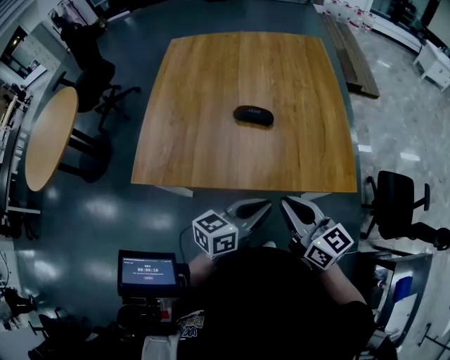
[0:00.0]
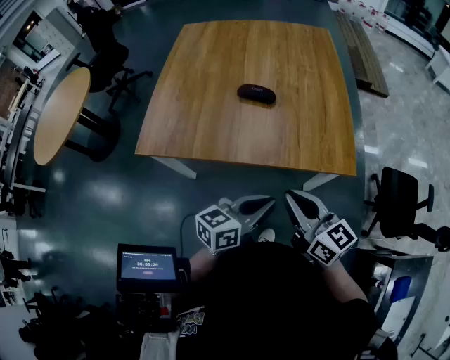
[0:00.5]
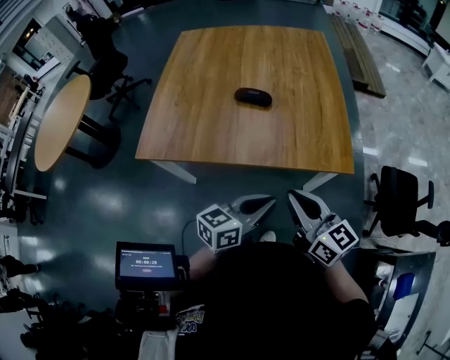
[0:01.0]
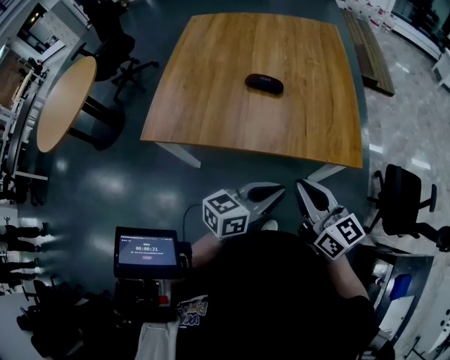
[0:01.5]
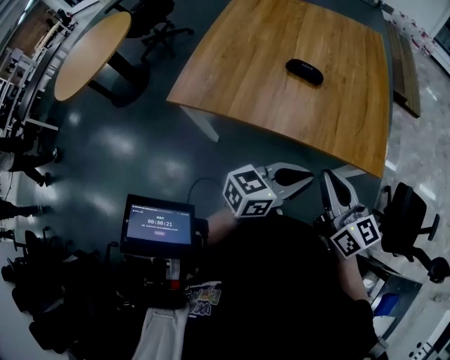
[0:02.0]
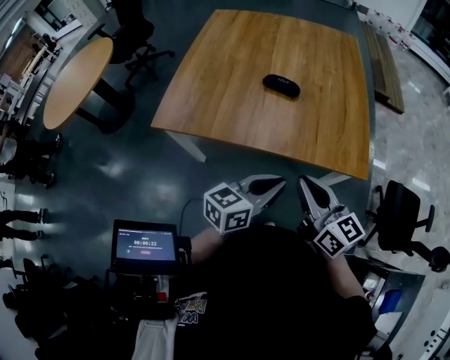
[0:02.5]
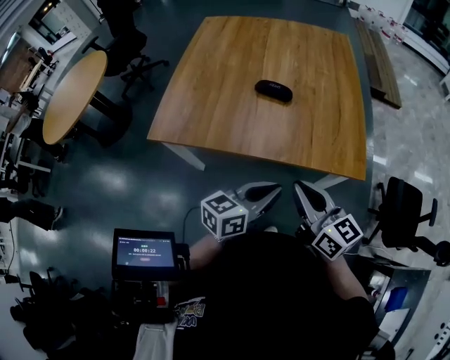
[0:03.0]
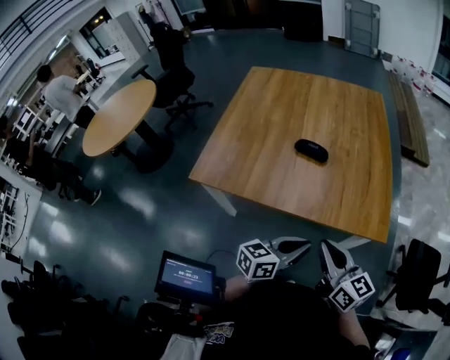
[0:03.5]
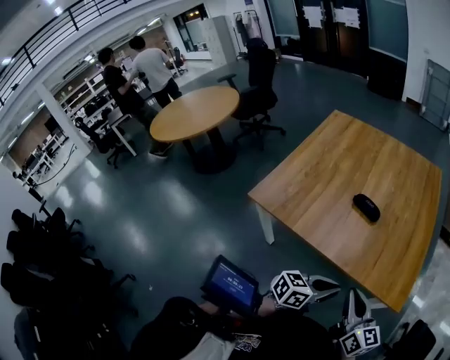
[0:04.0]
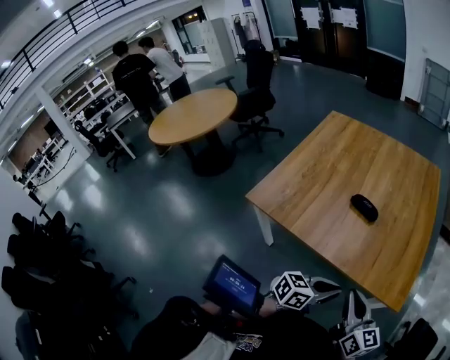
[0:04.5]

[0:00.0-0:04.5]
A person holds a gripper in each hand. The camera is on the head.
0:00.0 to 0:02.0: The two grippers go some 5 cm backward.
0:02.0 to 0:04.5: The left gripper is displaced downward by roughly 5 cm.

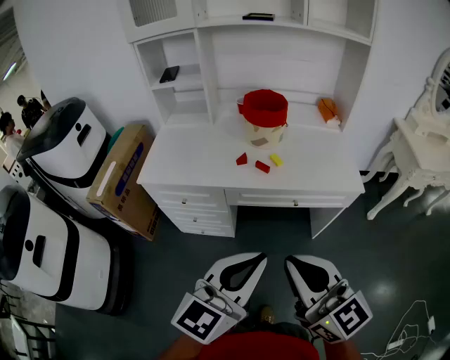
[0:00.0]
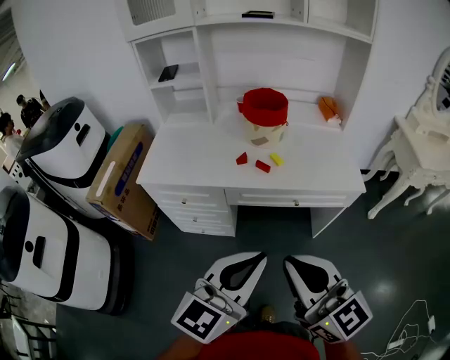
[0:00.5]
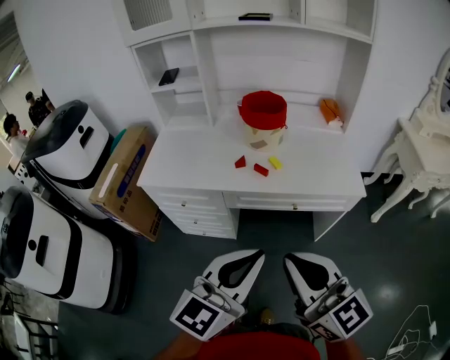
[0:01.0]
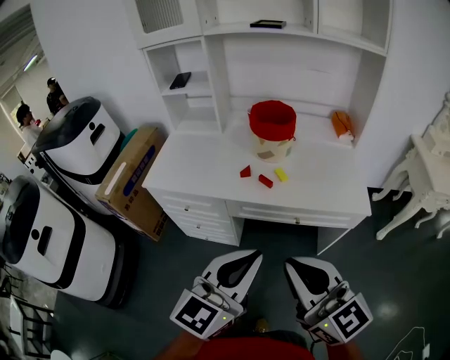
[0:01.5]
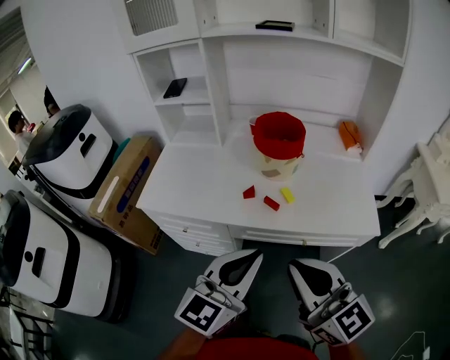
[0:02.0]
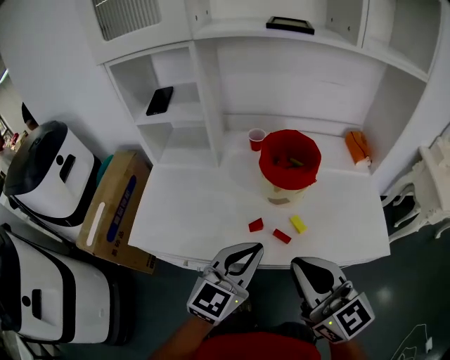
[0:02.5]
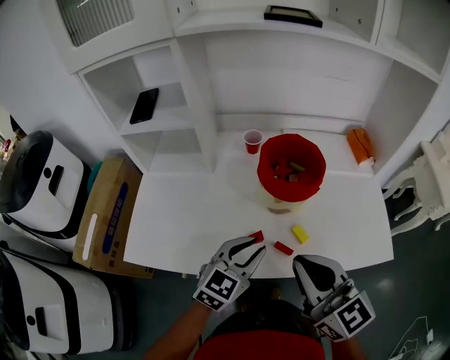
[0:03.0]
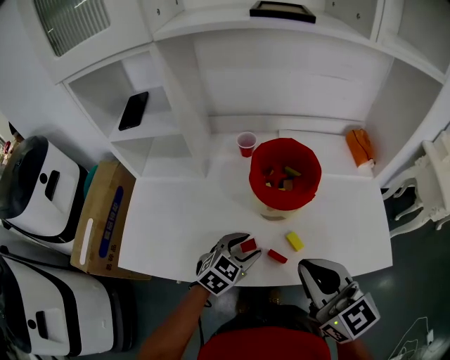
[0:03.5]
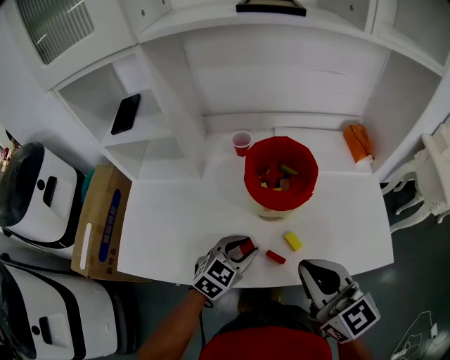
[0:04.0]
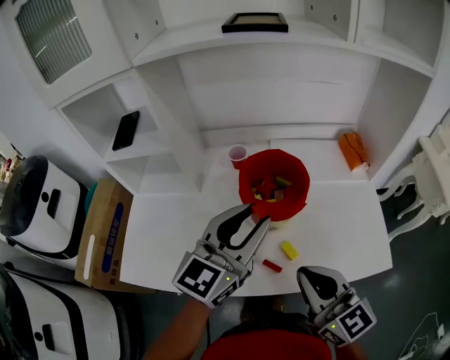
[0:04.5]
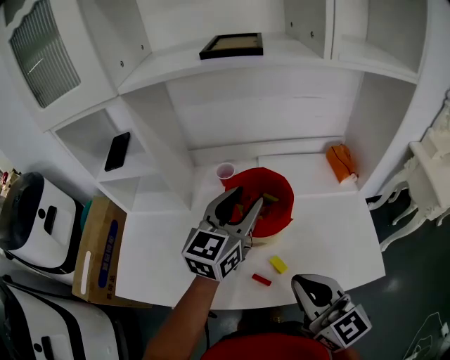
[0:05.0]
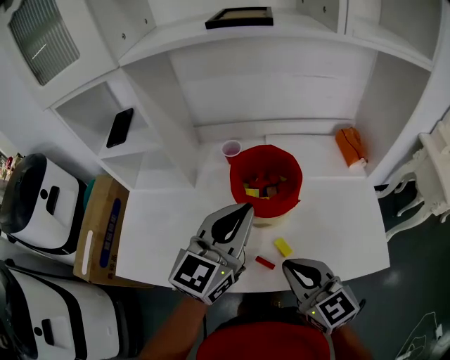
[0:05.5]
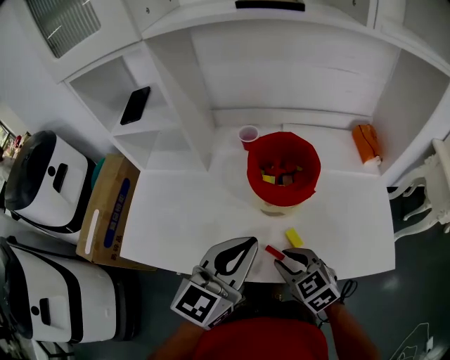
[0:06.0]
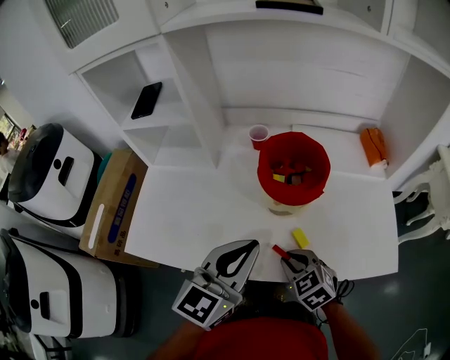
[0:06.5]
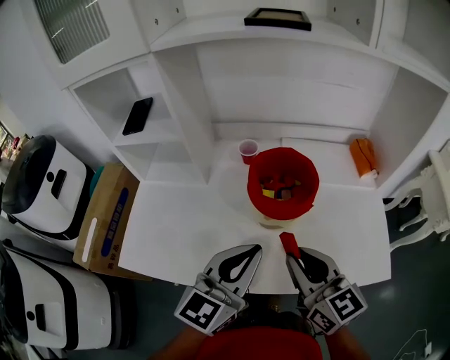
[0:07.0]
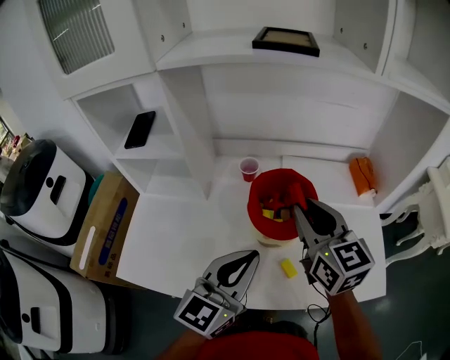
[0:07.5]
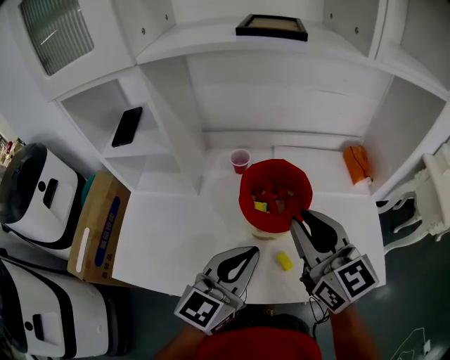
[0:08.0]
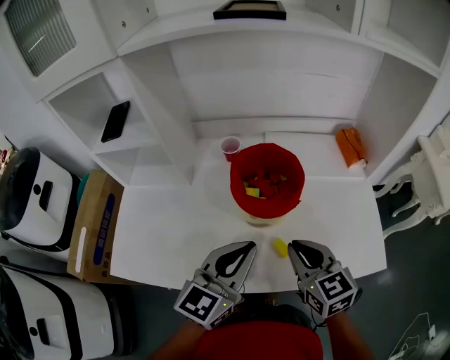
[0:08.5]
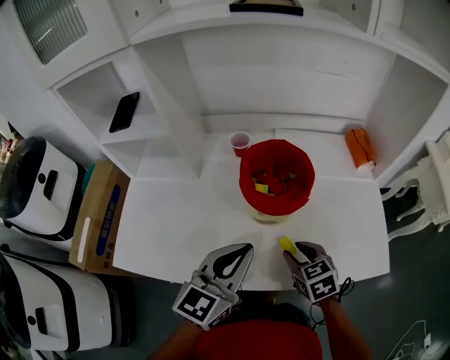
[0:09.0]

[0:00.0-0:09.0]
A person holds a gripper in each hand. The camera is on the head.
0:00.0 to 0:02.0: Both grippers move forward, approximately 15 cm.
0:02.0 to 0:04.5: Both grippers move forward, roughly 25 cm. The left gripper opens.
0:04.5 to 0:07.0: The left gripper travels backward by some 5 cm, and closes its fingers, while the right gripper reaches about 20 cm downward, then returns.
0:07.0 to 0:09.0: The right gripper travels downward by approximately 15 cm, points its fingers some 40 degrees further downward, and opens up.

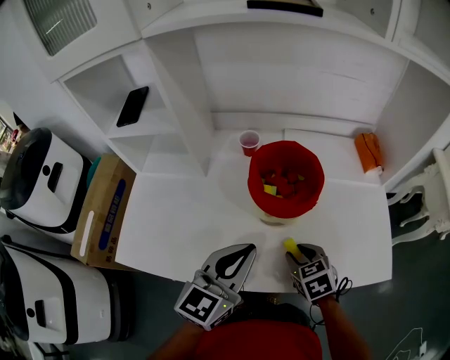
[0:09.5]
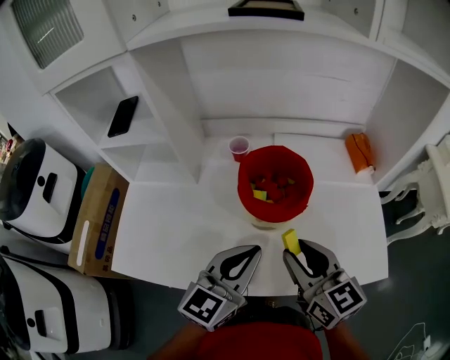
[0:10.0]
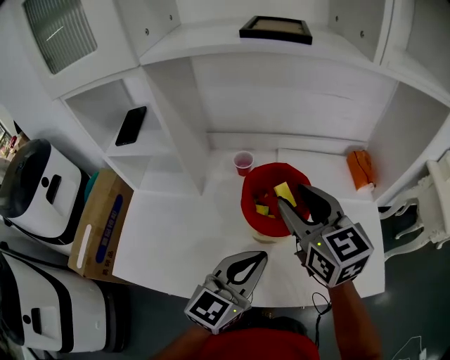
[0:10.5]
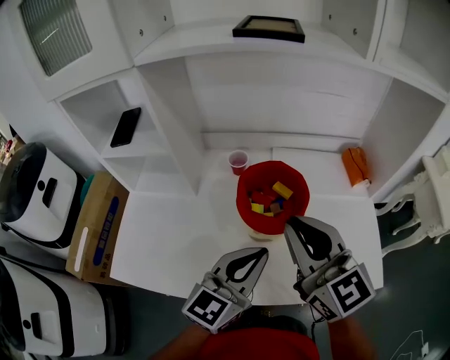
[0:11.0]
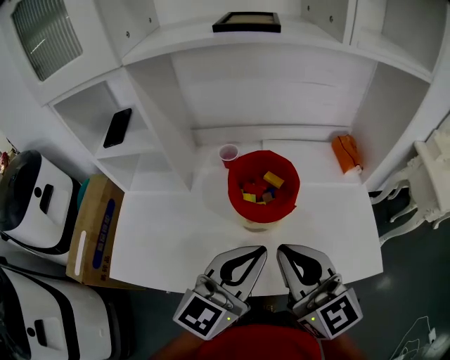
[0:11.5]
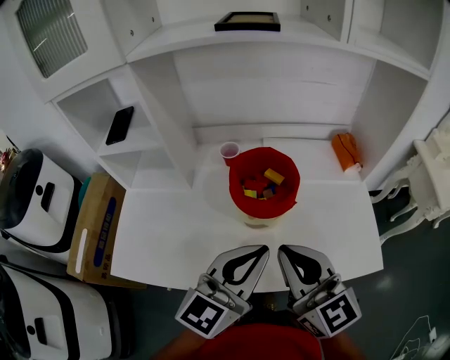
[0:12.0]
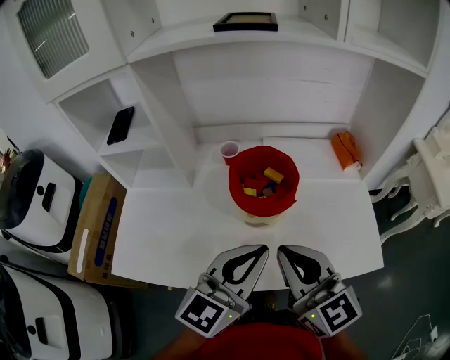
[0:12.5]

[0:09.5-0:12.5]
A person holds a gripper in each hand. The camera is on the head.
0:09.5 to 0:11.0: The right gripper shifts roughly 30 cm upward, tips its fingers upward by some 50 degrees, and closes up; the left gripper moves roughly 5 cm.
0:11.0 to 0:12.5: The right gripper goes some 10 cm backward; the left gripper shifts by roughly 5 cm.

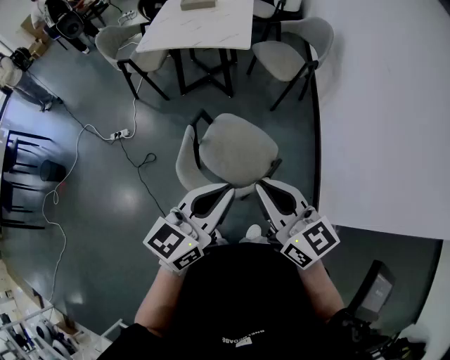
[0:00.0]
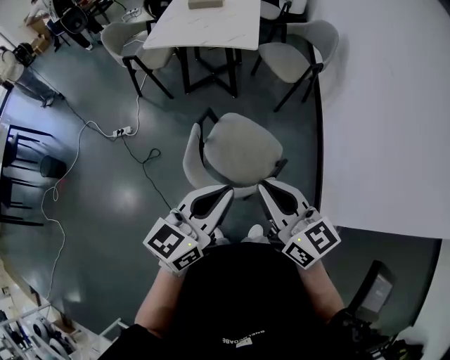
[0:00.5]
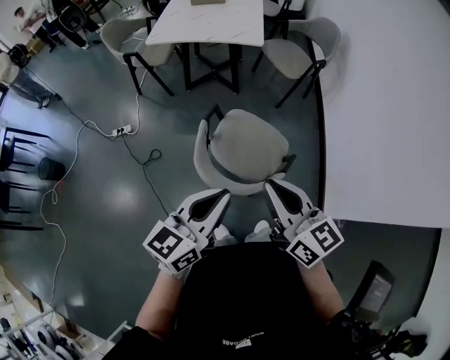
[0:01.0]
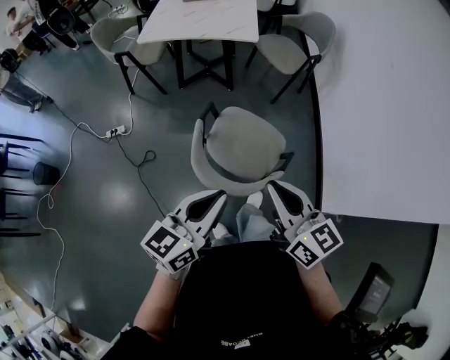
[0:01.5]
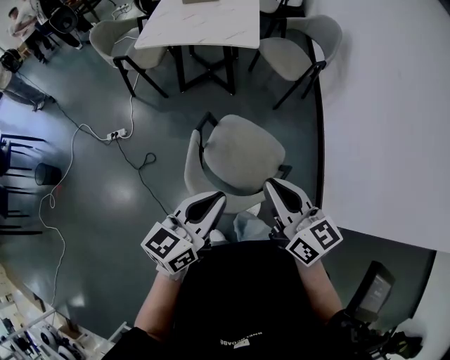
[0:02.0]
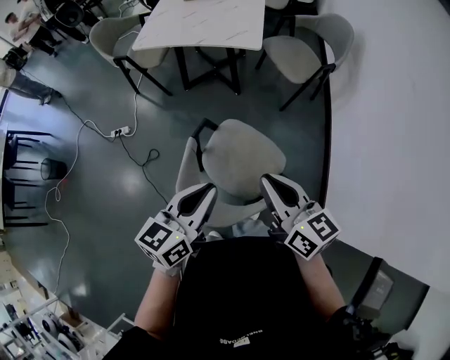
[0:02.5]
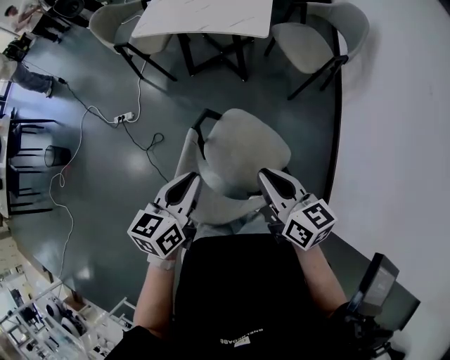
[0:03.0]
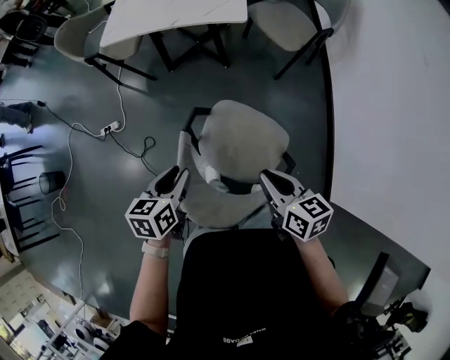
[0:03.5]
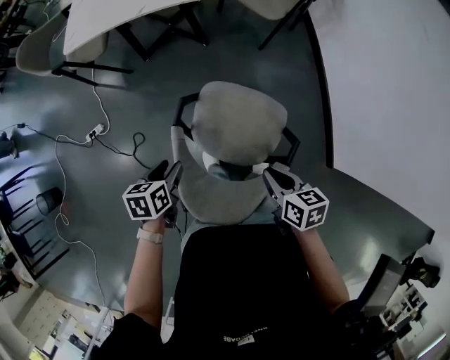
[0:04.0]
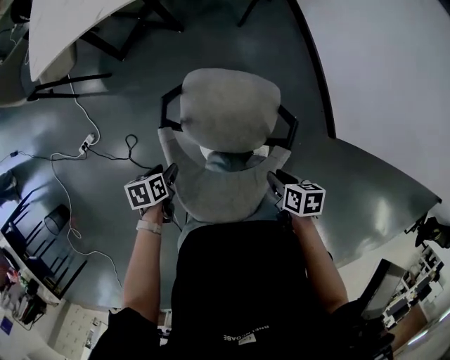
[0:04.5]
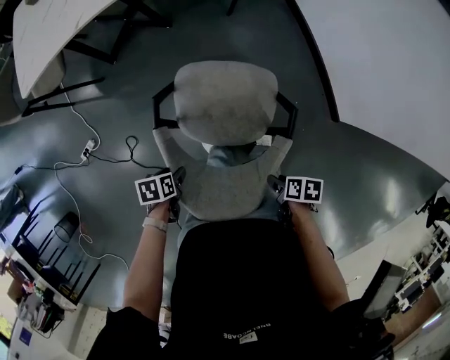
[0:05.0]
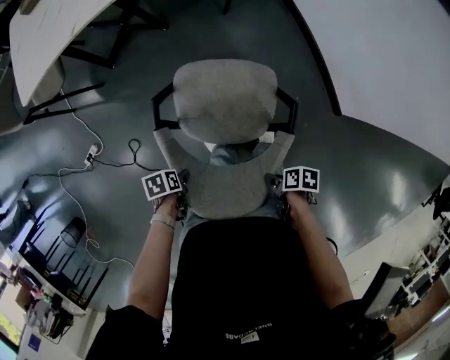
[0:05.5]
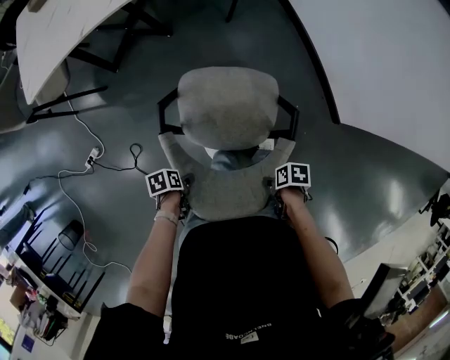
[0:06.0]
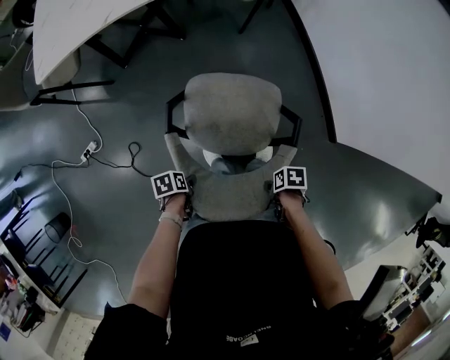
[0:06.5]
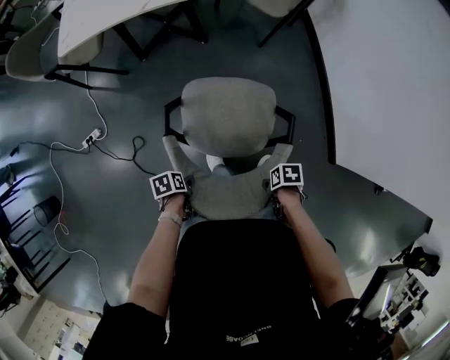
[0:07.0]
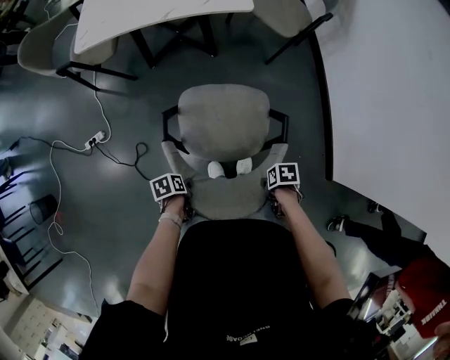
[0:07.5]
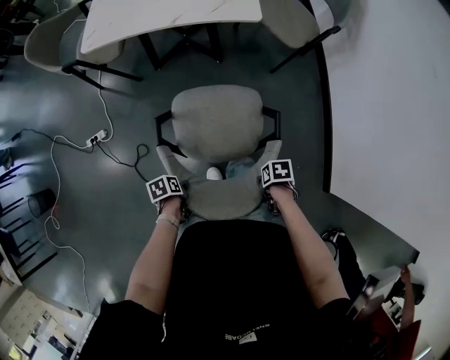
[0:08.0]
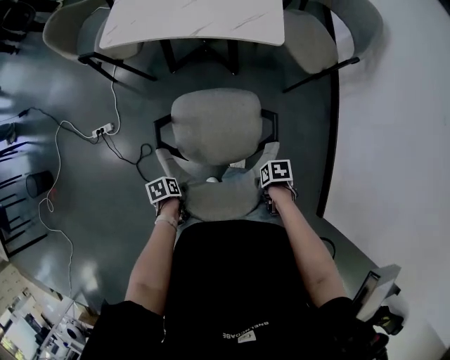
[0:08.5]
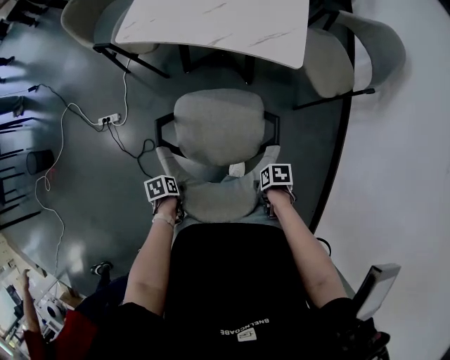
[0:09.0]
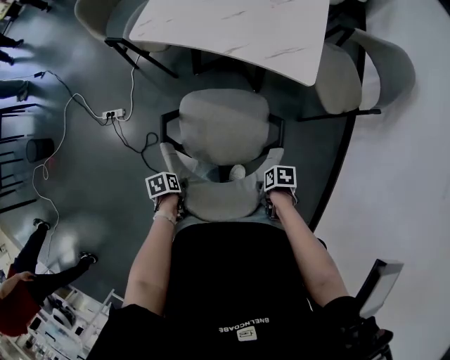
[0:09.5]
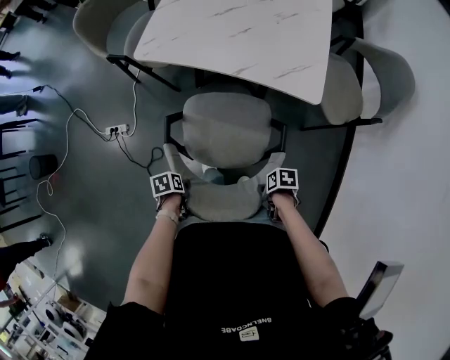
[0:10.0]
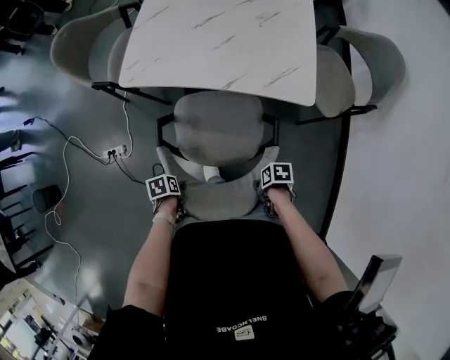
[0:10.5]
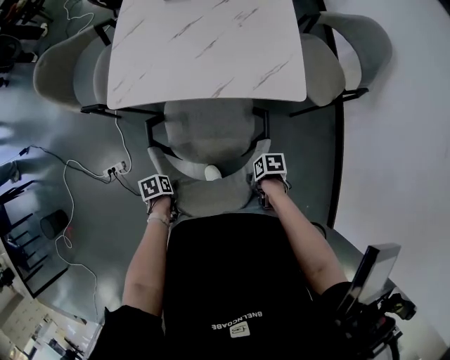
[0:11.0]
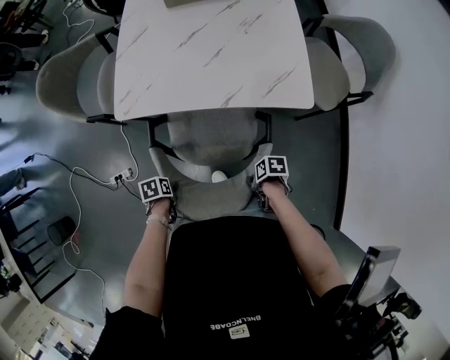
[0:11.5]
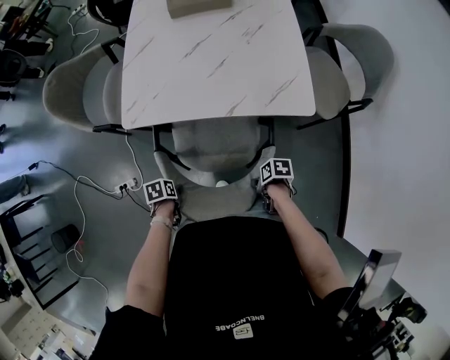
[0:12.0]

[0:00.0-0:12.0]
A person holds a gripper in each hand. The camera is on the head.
0:00.0 to 0:02.0: The left gripper changes place by about 10 cm.
0:02.0 to 0:04.0: The left gripper shifts approximately 25 cm downward, angles its fingers downward, by some 50 degrees, and opens.
0:04.0 to 0:06.0: The left gripper is displaced downward by roughly 20 cm, and changes its angle by about 40 degrees.
0:06.0 to 0:08.0: The left gripper ends up approximately 10 cm from where it was, rotates roughly 30 degrees, and closes.
0:08.0 to 0:10.0: The left gripper ends up roughly 20 cm from where it was.
0:10.0 to 0:12.0: The left gripper ends up about 20 cm from where it was.
